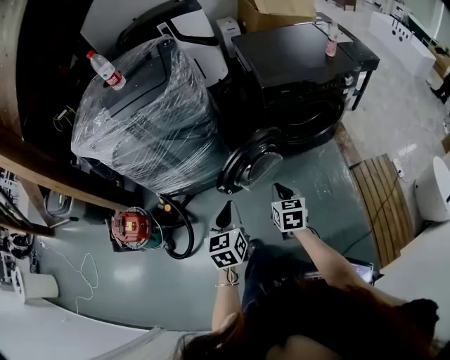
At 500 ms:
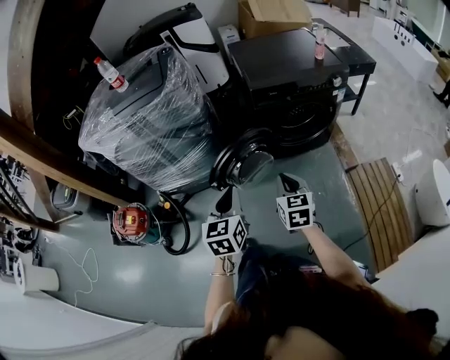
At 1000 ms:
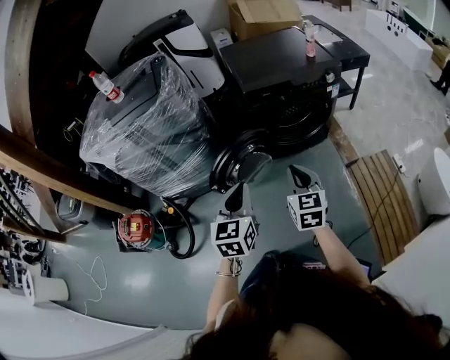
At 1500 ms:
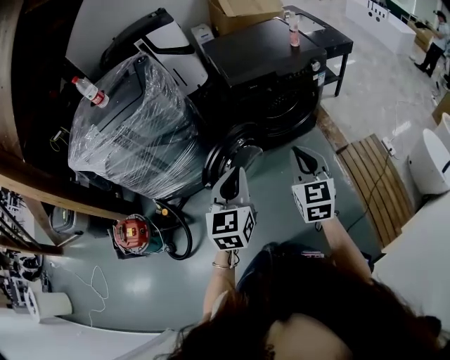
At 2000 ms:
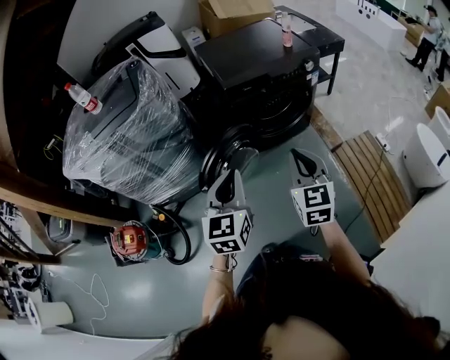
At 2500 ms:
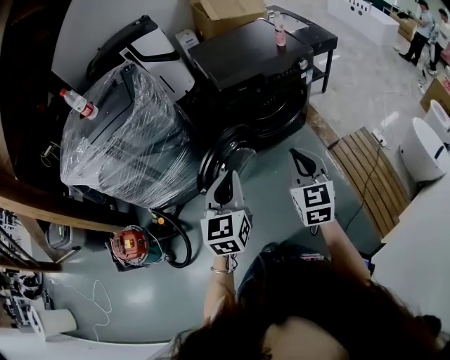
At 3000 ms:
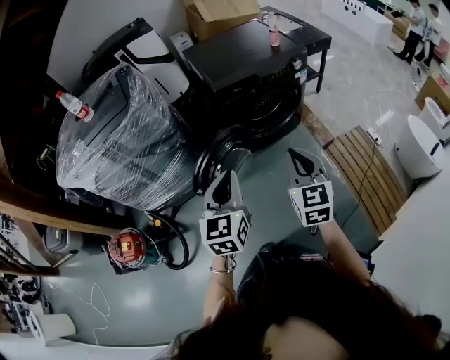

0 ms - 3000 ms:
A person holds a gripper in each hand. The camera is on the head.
0 ms - 1500 ms: The left gripper heads to the right and upward, covering approximately 20 cm, and swivels about 20 degrees. The right gripper heads upward and to the right, covering some 25 cm, and swivels approximately 30 degrees.
1500 ms - 3000 ms: The grippers move only a little.

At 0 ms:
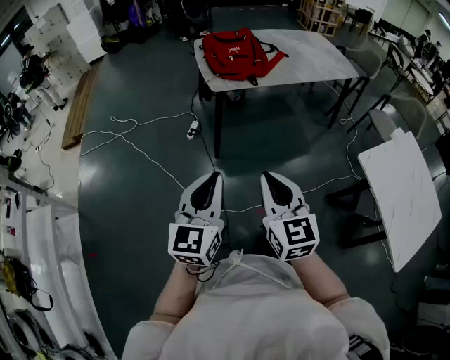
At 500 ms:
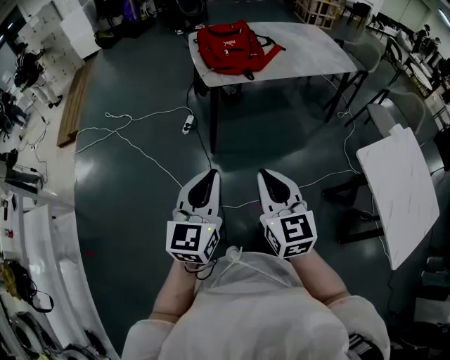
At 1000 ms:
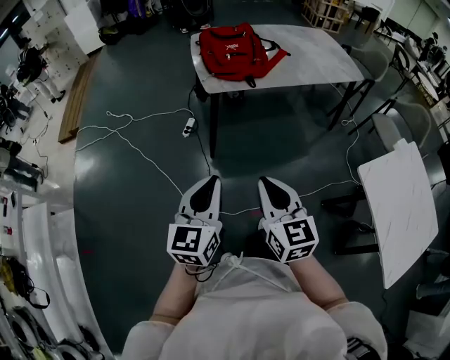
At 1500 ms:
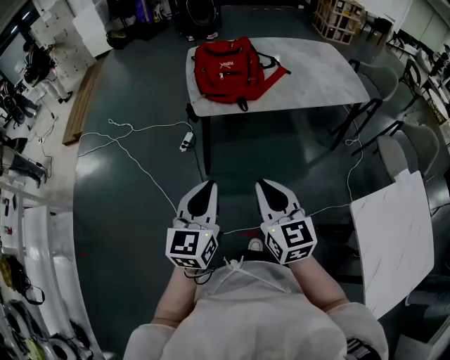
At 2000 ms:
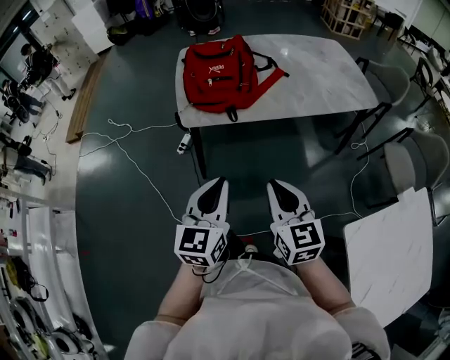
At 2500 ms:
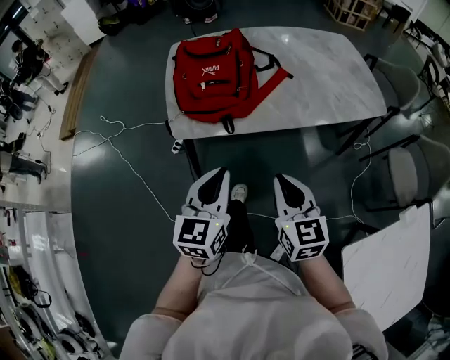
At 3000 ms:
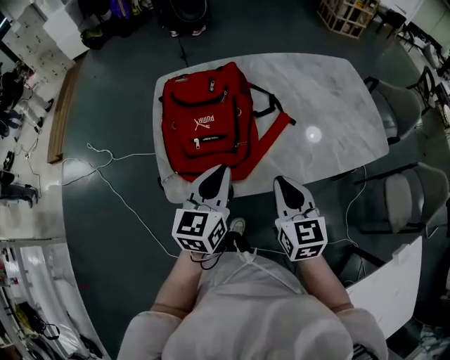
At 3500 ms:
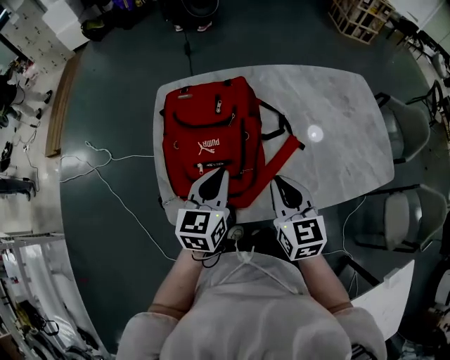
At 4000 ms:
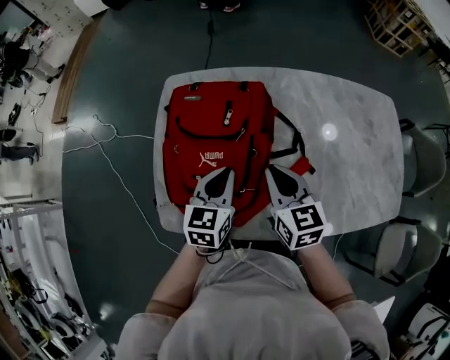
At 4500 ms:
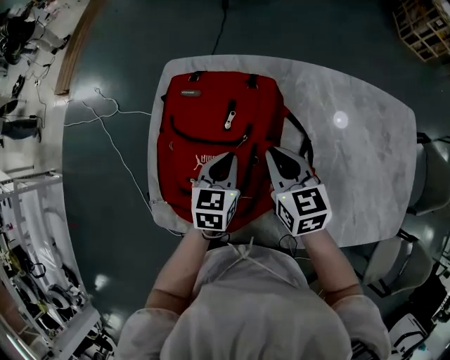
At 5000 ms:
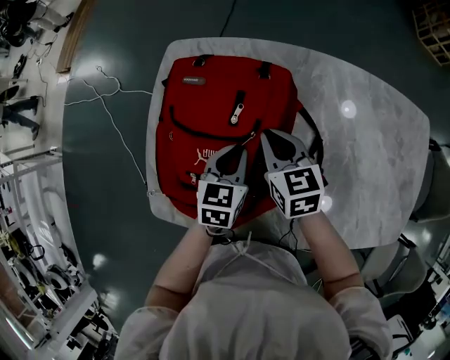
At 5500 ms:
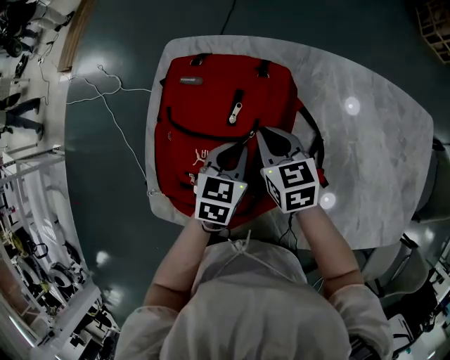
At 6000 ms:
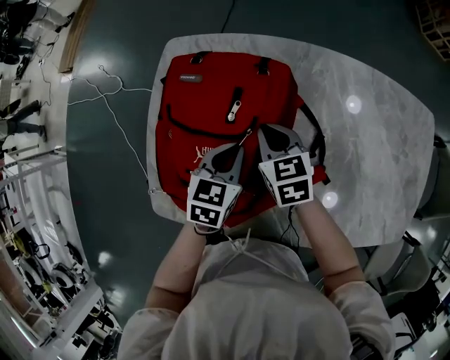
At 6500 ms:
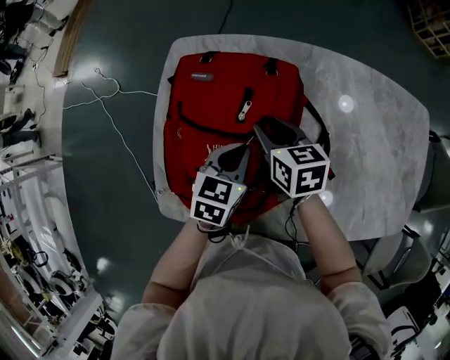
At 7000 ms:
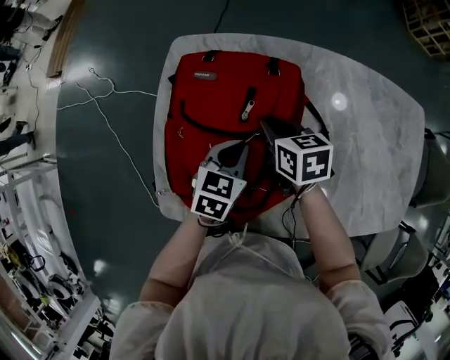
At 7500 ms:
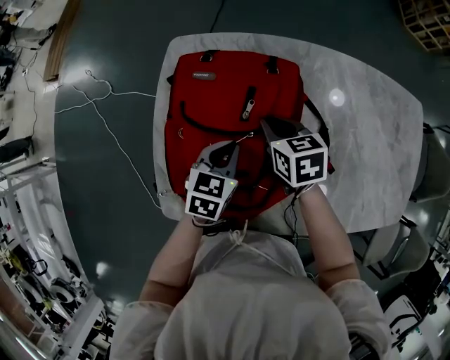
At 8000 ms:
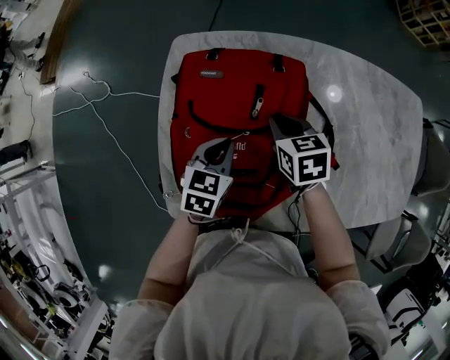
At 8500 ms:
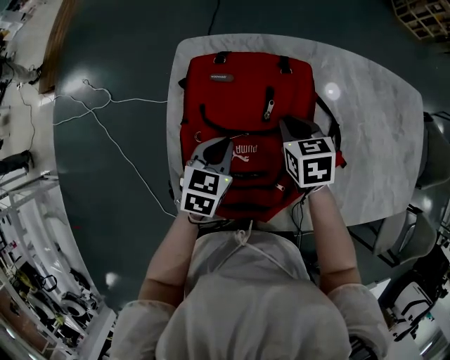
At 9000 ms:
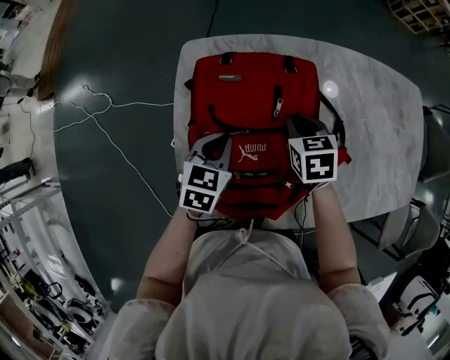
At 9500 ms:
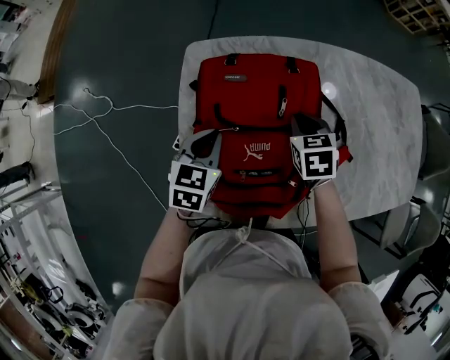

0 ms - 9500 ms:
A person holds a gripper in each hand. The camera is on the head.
0 ms - 2000 ms: Both grippers travel together forward and to the right, roughly 35 cm.
2000 ms - 4000 ms: Both grippers are carried forward, about 60 cm.
4000 ms - 5500 ms: The left gripper is displaced downward and forward by some 10 cm; the right gripper shifts approximately 15 cm forward and downward.
5500 ms - 7500 ms: The left gripper shifts some 5 cm to the left.
7500 ms - 9500 ms: The left gripper shifts roughly 15 cm to the left. Meanwhile the right gripper swivels some 20 degrees.

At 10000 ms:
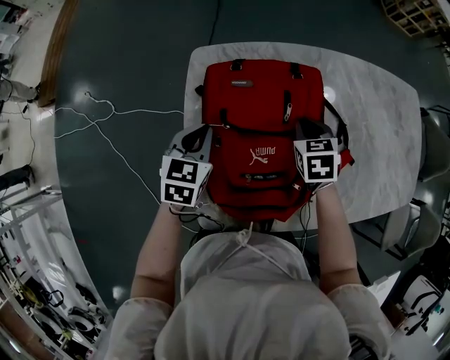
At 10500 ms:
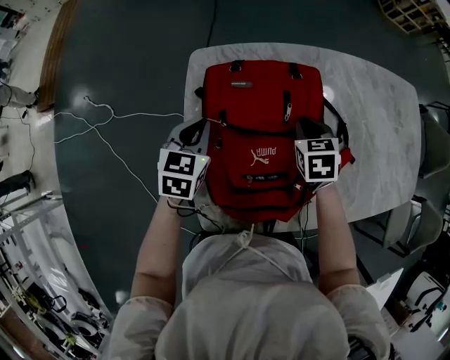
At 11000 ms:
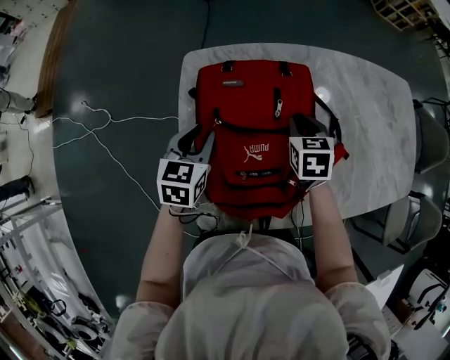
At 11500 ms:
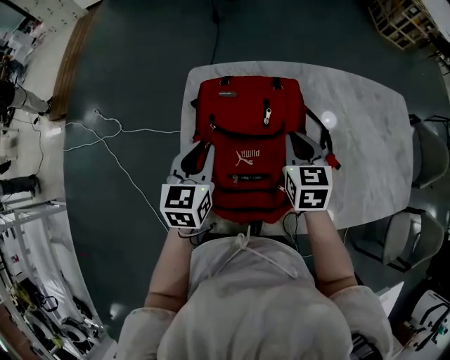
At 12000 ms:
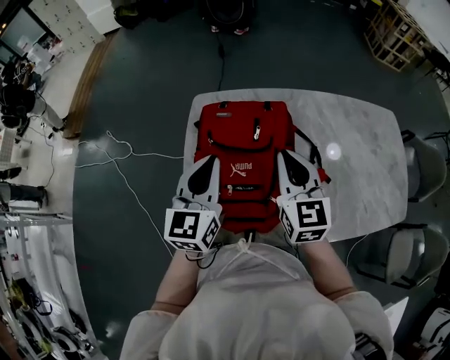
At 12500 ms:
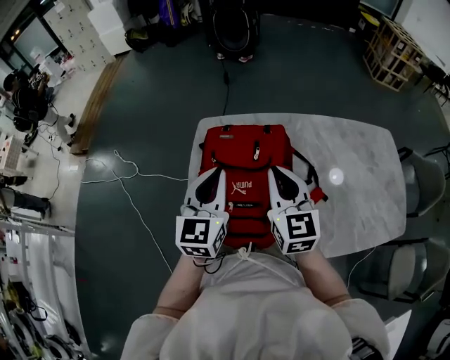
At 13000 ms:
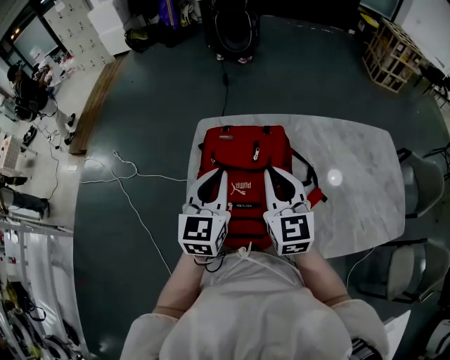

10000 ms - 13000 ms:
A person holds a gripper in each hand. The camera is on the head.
10000 ms - 11500 ms: The two grippers go some 10 cm upward. The right gripper turns by about 20 degrees.
11500 ms - 13000 ms: The left gripper heads upward and to the right, covering some 15 cm. The right gripper heads upward and backward, covering approximately 15 cm, and swivels approximately 30 degrees.

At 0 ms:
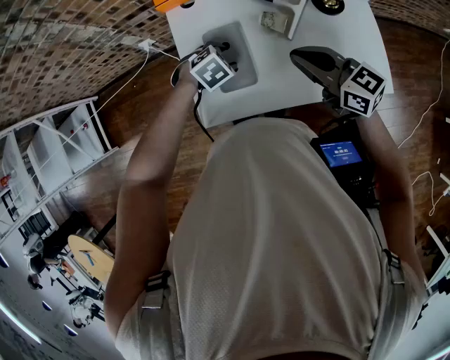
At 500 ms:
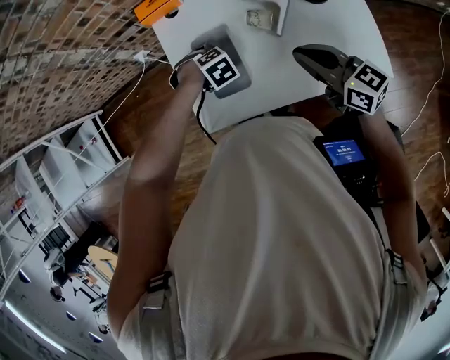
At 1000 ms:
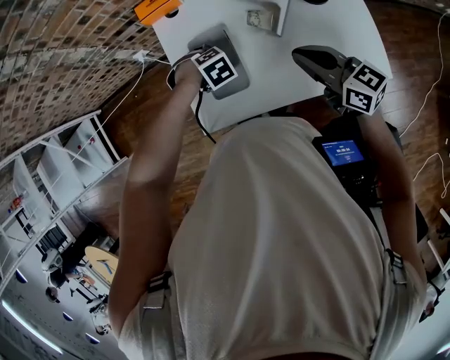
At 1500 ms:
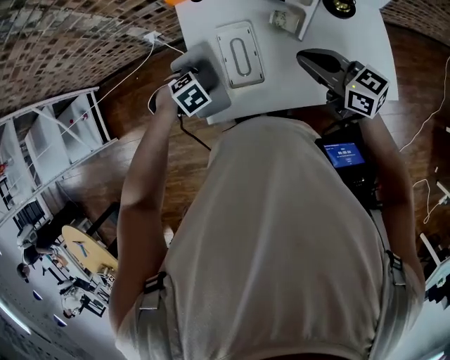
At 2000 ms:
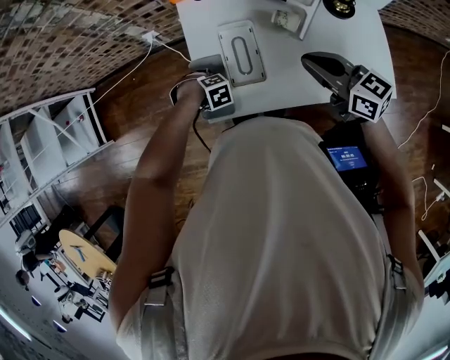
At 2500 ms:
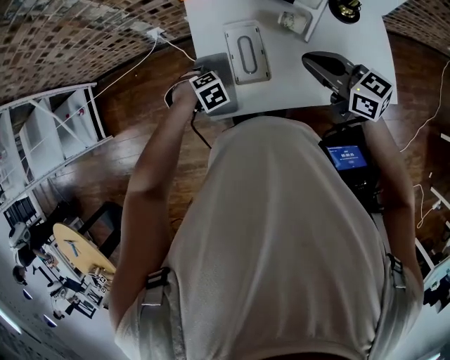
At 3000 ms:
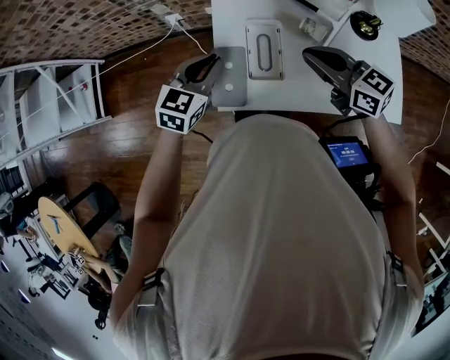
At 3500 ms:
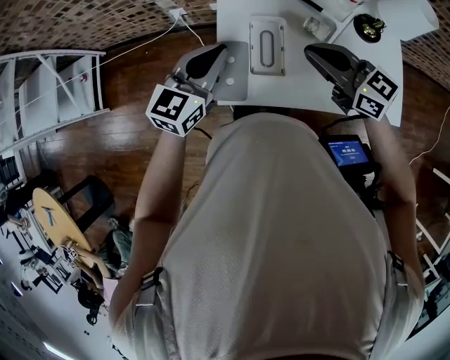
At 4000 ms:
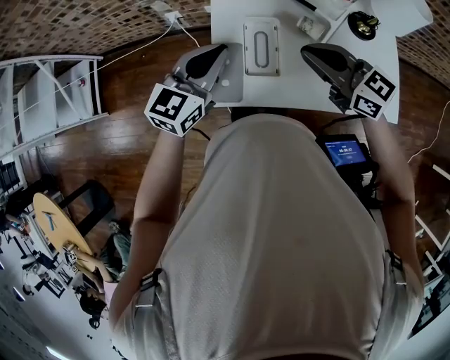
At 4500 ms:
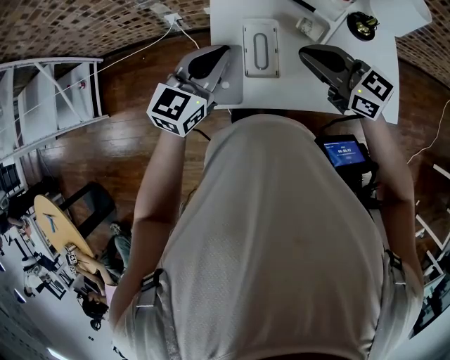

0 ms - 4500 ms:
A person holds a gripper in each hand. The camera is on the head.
0 ms - 2000 ms: The left gripper moves some 20 cm, and swivels roughly 30 degrees.
2000 ms - 4500 ms: The left gripper shifts some 35 cm upward, tilts its fingers some 70 degrees upward, and closes; the right gripper ends up about 10 cm from where it was.

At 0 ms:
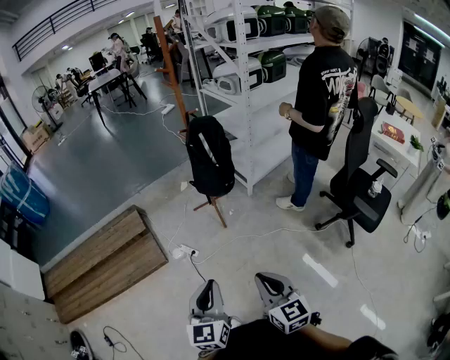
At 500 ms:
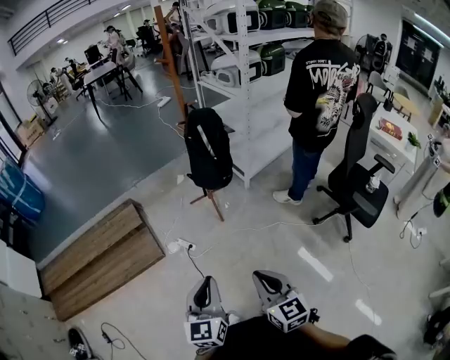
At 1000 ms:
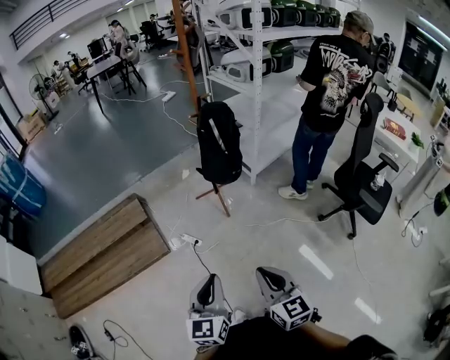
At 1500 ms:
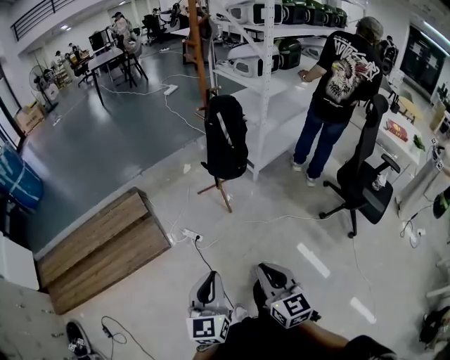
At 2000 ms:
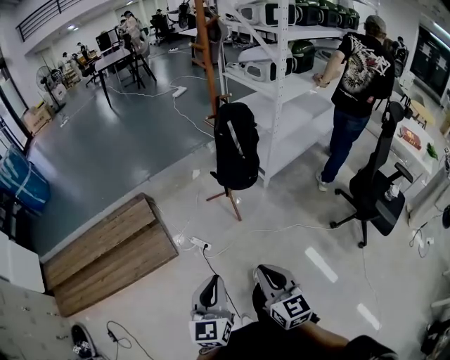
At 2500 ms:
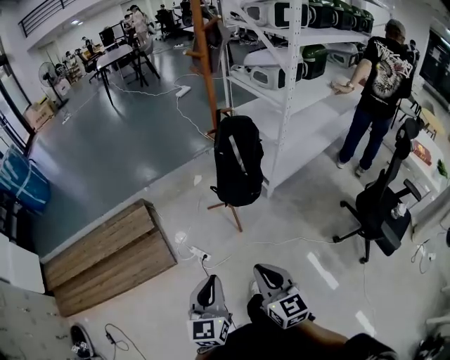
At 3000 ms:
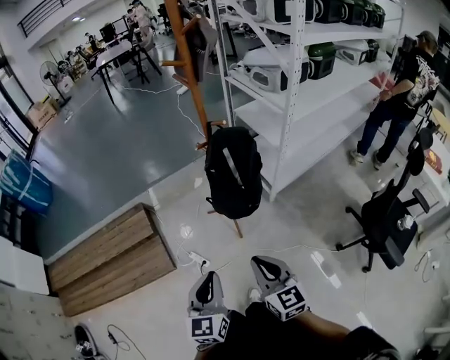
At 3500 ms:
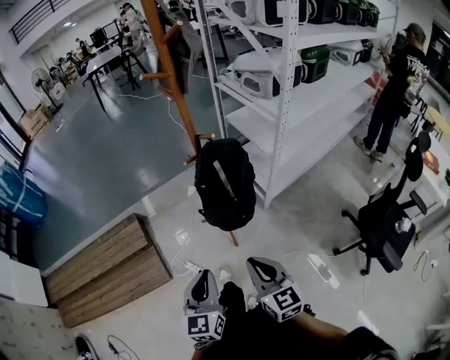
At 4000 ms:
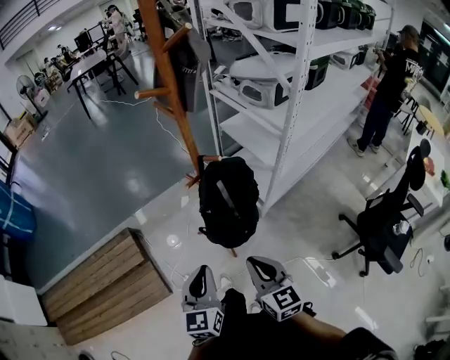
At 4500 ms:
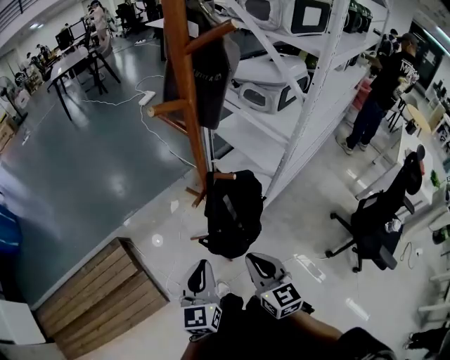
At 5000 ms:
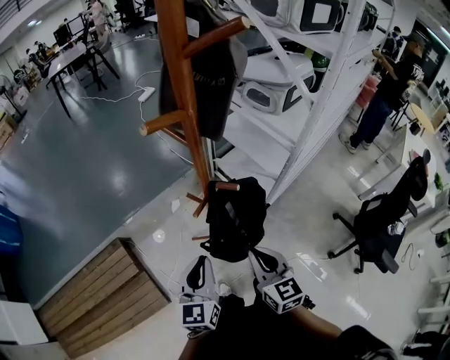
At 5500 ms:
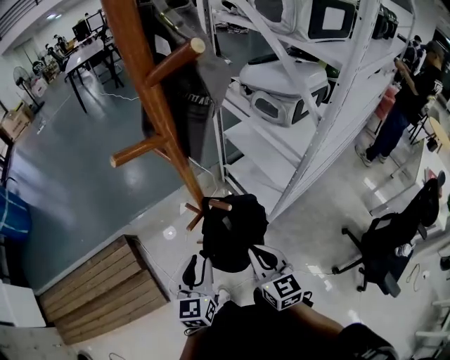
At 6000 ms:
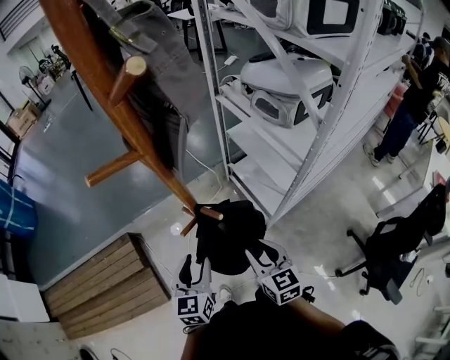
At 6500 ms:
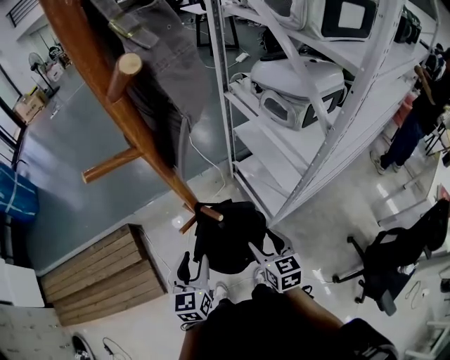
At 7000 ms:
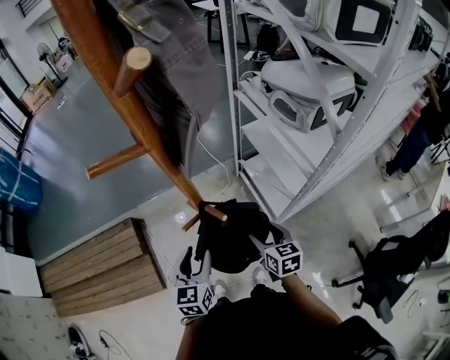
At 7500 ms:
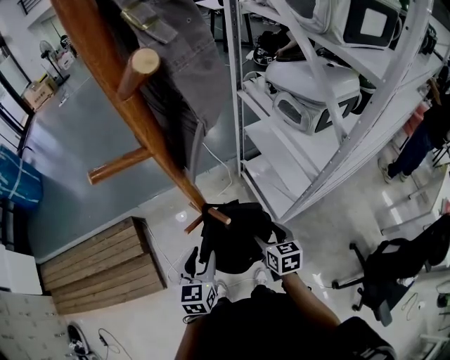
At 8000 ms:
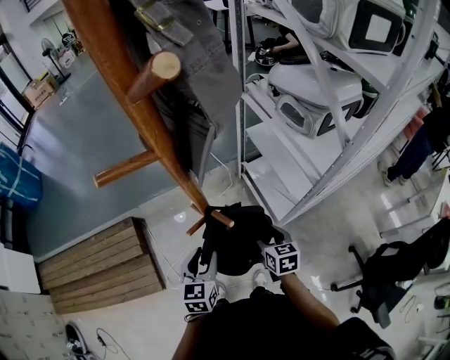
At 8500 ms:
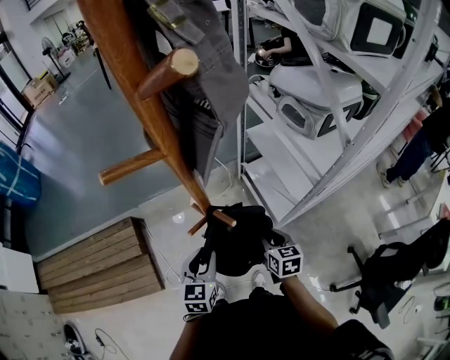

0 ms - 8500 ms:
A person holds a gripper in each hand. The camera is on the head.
0 ms - 2000 ms: Both grippers move to the left and forward, some 15 cm.
2000 ms - 4000 ms: The pair of grippers is taken forward, some 40 cm.
4000 ms - 6500 ms: Both grippers move forward, approximately 25 cm. The left gripper opens up. Meanwhile the right gripper opens.
6500 ms - 8500 ms: The right gripper travels downward by about 5 cm, and closes.
